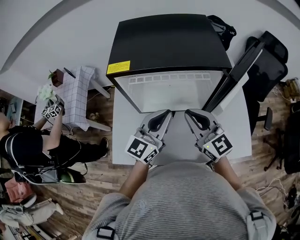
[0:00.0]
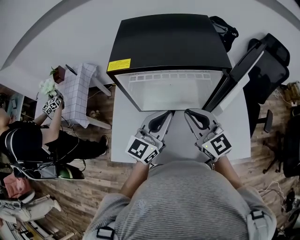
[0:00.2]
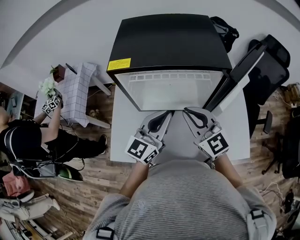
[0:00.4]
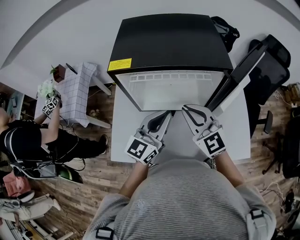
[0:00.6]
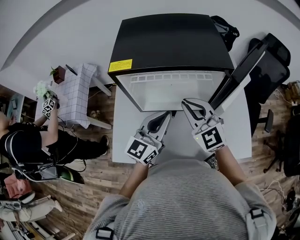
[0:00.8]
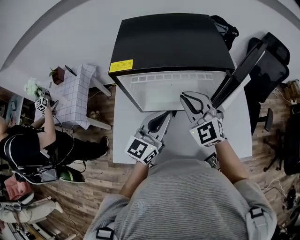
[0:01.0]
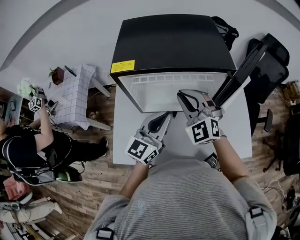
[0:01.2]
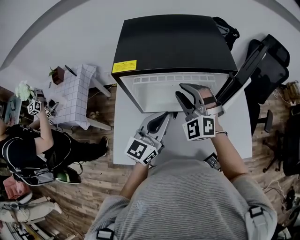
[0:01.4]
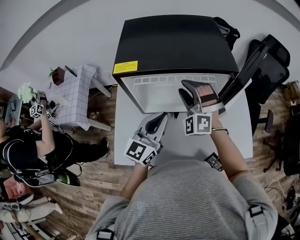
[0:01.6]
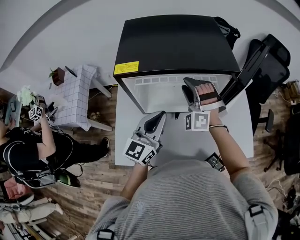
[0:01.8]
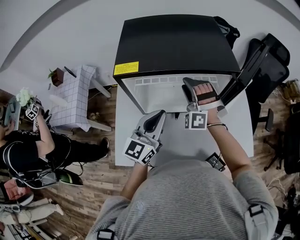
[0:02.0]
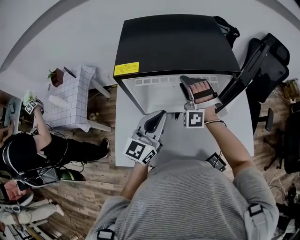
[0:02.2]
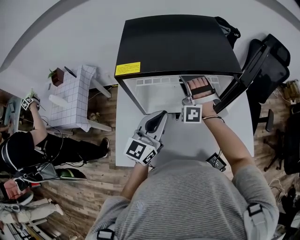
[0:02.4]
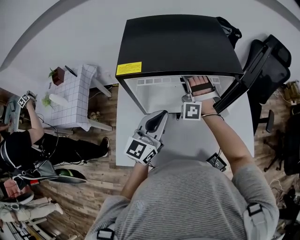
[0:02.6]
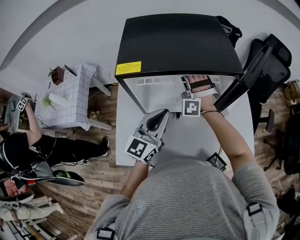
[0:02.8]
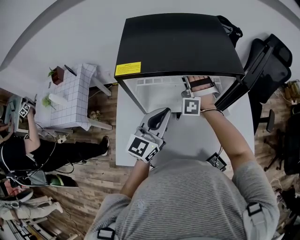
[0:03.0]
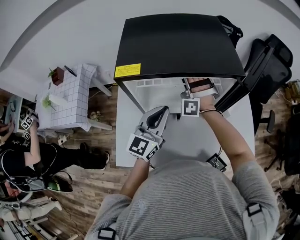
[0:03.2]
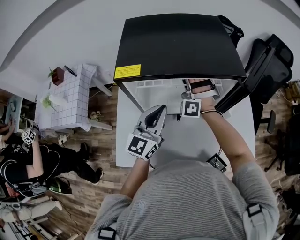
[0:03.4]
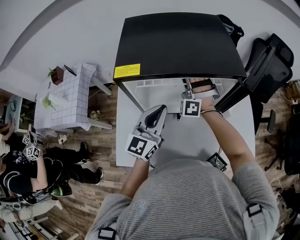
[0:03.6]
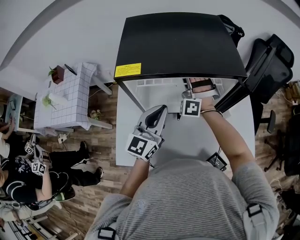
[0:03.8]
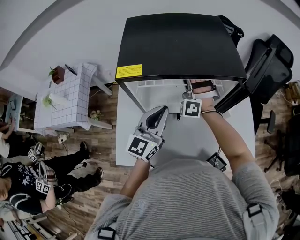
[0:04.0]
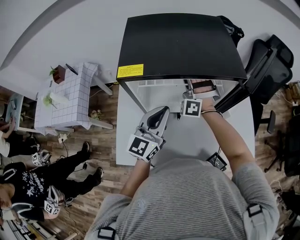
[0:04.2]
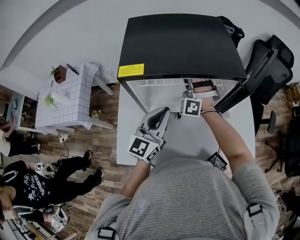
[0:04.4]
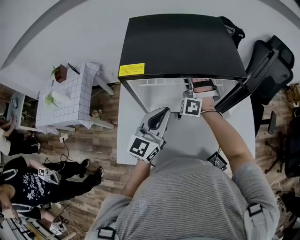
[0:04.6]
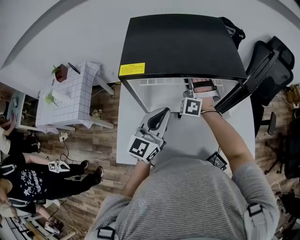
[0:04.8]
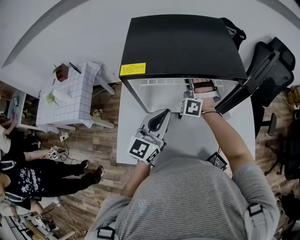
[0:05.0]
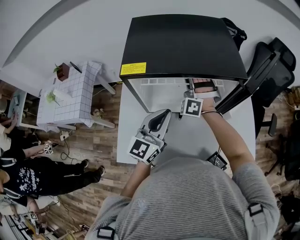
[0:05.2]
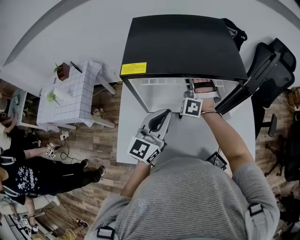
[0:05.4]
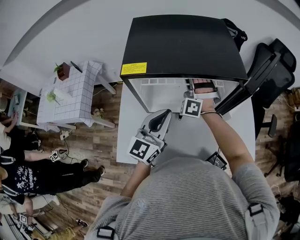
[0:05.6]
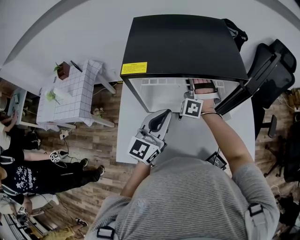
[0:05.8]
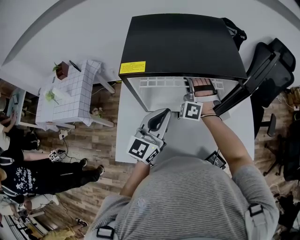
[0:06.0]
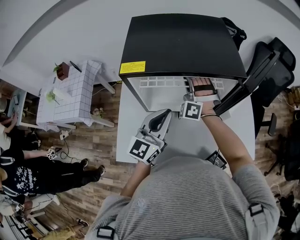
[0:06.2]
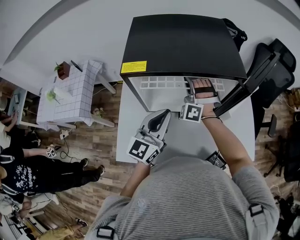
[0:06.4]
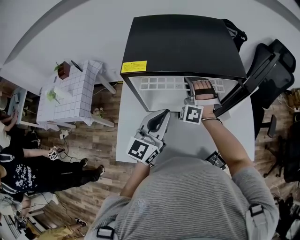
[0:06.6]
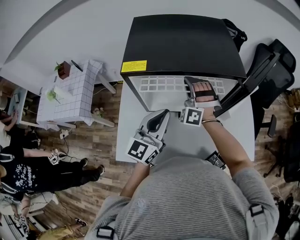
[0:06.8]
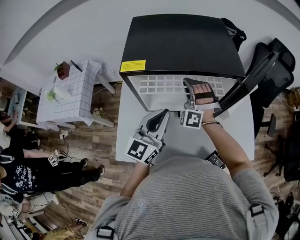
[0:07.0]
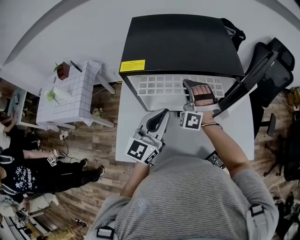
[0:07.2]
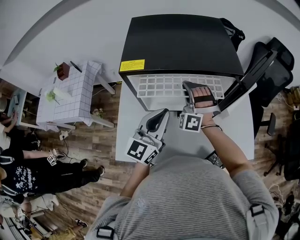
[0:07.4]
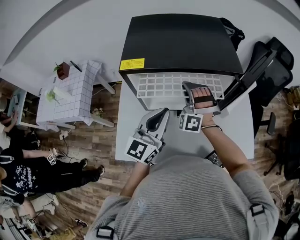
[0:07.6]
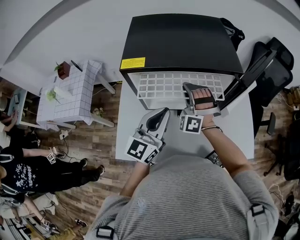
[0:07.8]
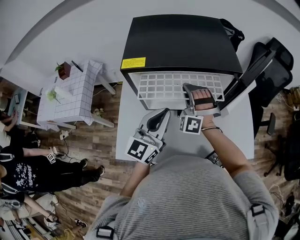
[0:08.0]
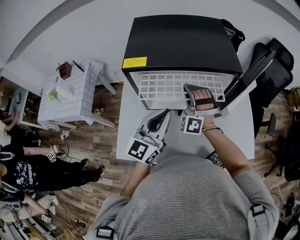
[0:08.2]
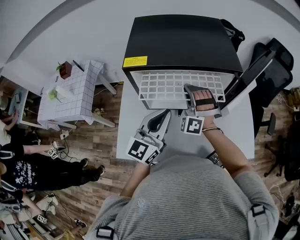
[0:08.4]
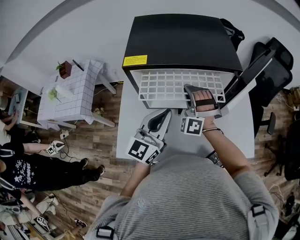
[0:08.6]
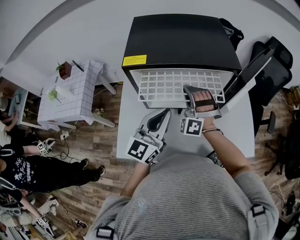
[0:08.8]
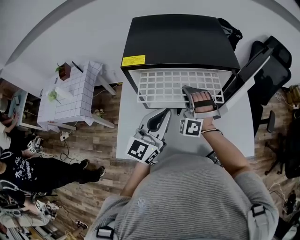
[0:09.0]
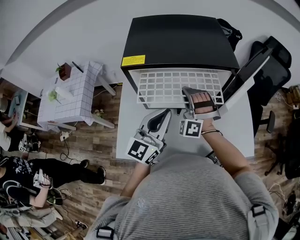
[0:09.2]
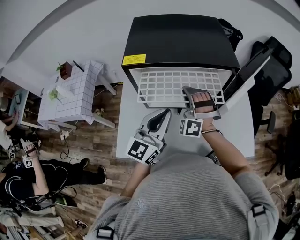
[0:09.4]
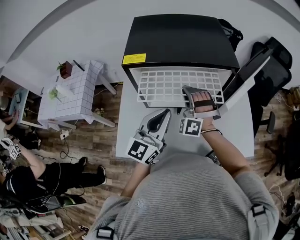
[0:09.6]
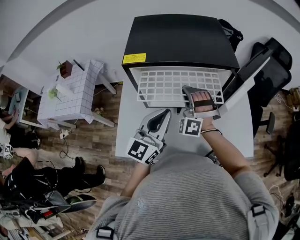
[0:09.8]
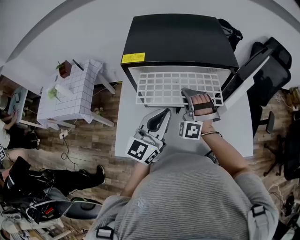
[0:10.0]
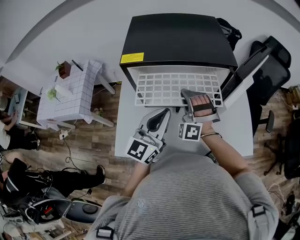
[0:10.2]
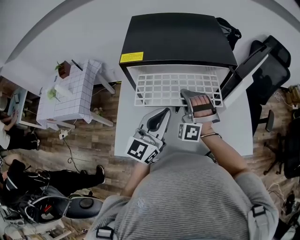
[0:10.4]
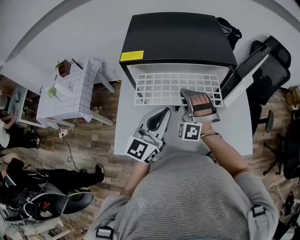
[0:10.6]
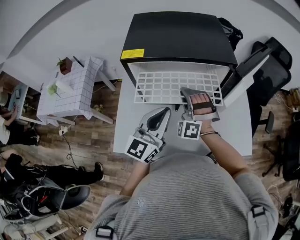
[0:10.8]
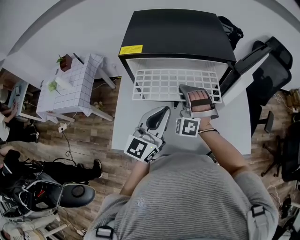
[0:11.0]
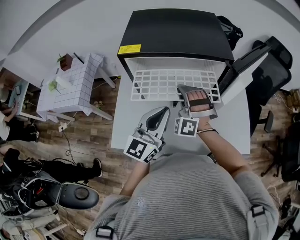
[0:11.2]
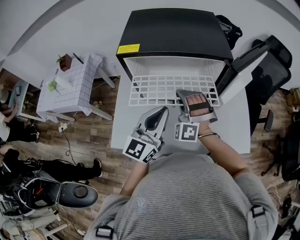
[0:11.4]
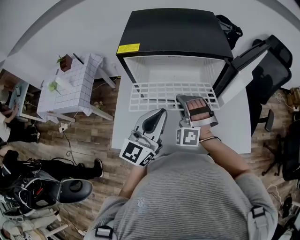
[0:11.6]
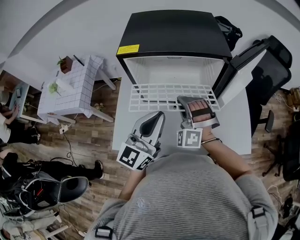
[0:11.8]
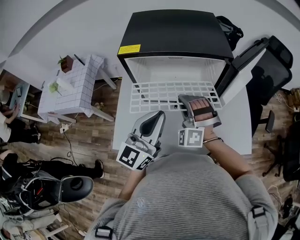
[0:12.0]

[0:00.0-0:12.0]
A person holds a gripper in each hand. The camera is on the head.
0:00.0 to 0:01.6: The right gripper moves forward, roughly 10 cm, rotates around the line of its fingers by about 70 degrees, counterclockwise from behind, and opens up.
0:01.6 to 0:03.0: The right gripper moves forward, about 10 cm, and changes its angle by about 20 degrees.
0:03.0 to 0:04.4: The right gripper closes.
0:04.4 to 0:06.0: The grippers move only a little.
0:06.0 to 0:07.6: The right gripper heads backward, covering roughly 5 cm.
0:07.6 to 0:09.0: The grippers stay close to where they were, moving slightly.
0:09.0 to 0:10.4: The grippers make only small movements.
0:10.4 to 0:12.0: The left gripper shifts by about 5 cm. The right gripper heads backward, covering roughly 5 cm.

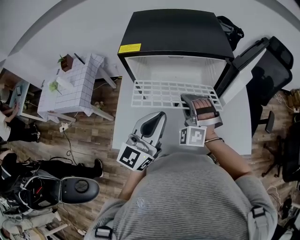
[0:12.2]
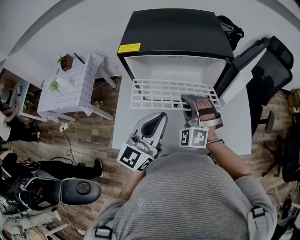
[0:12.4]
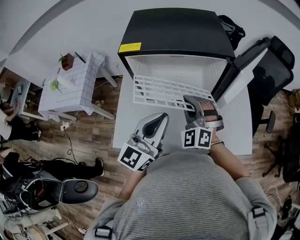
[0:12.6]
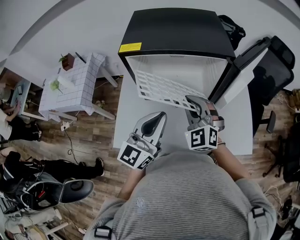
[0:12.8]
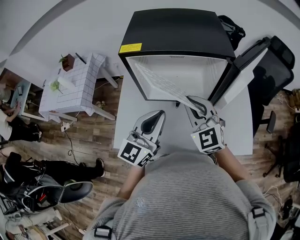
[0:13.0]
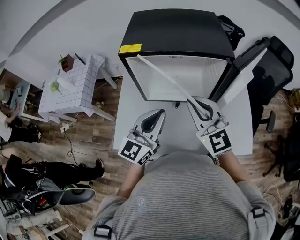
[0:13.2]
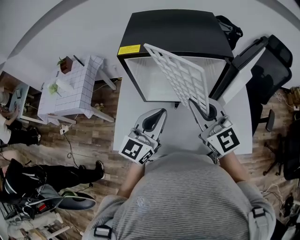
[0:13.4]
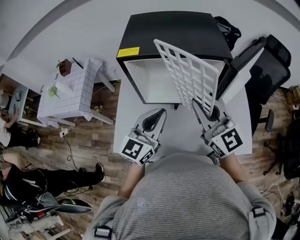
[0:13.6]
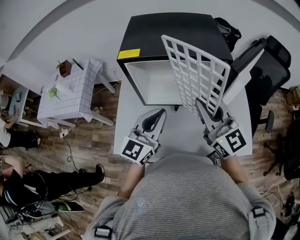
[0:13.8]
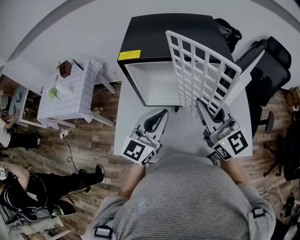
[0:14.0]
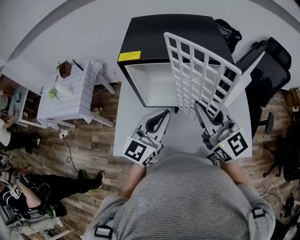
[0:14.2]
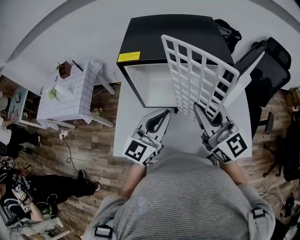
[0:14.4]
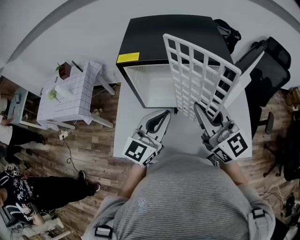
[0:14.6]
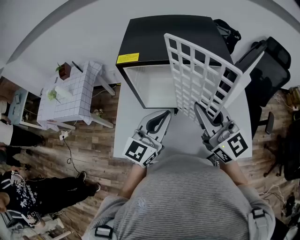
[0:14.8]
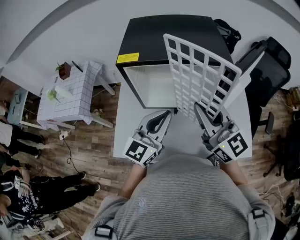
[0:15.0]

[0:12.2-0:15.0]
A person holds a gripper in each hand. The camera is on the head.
0:12.2 to 0:13.6: The right gripper shifts about 10 cm upward, and twists some 60 degrees clockwise, seen from behind.
0:13.6 to 0:15.0: The grippers stay close to where they were, moving slightly.

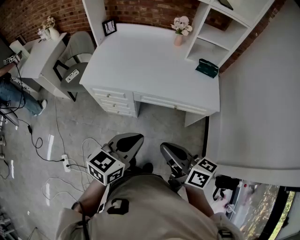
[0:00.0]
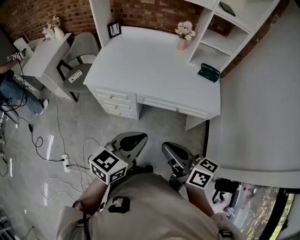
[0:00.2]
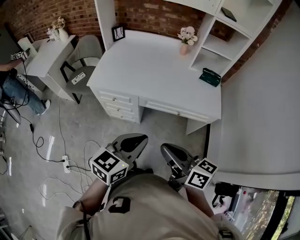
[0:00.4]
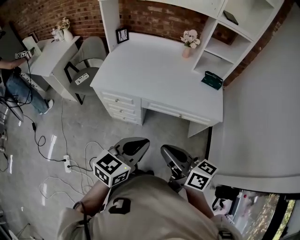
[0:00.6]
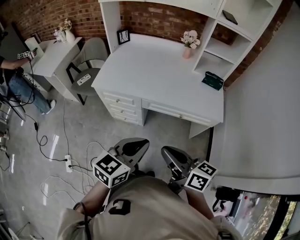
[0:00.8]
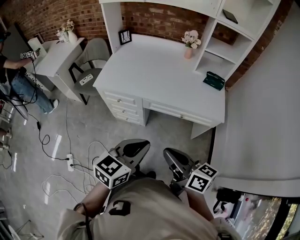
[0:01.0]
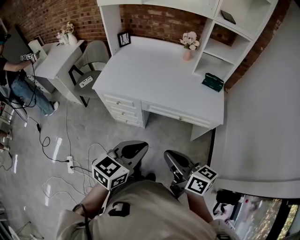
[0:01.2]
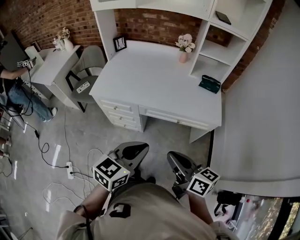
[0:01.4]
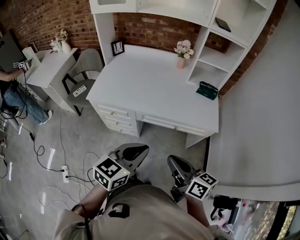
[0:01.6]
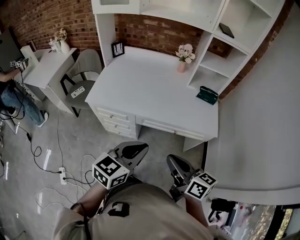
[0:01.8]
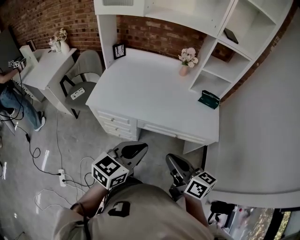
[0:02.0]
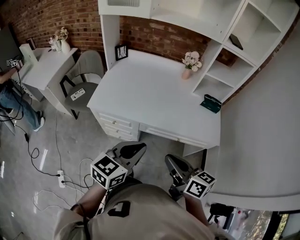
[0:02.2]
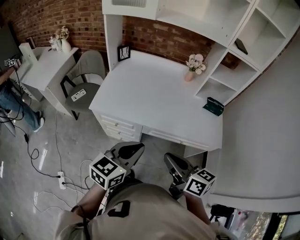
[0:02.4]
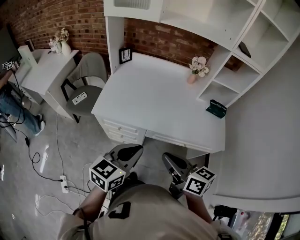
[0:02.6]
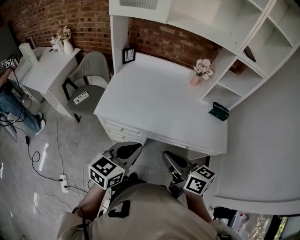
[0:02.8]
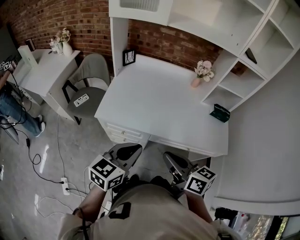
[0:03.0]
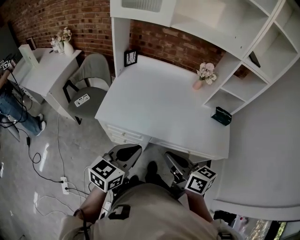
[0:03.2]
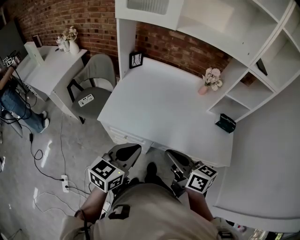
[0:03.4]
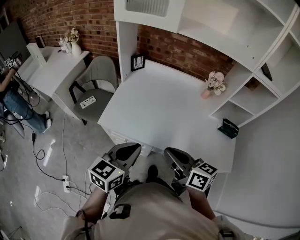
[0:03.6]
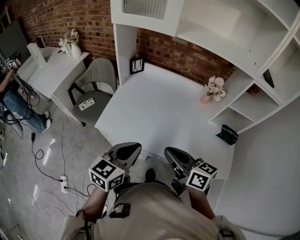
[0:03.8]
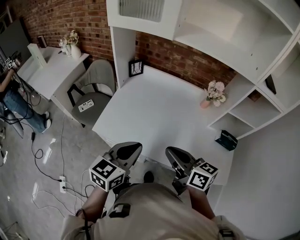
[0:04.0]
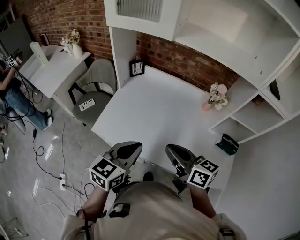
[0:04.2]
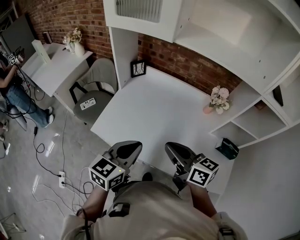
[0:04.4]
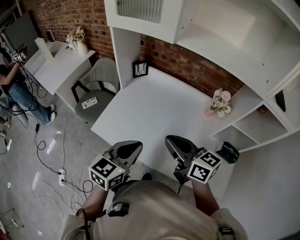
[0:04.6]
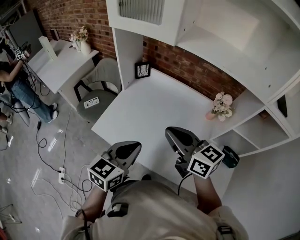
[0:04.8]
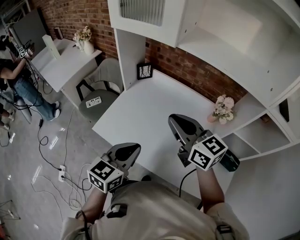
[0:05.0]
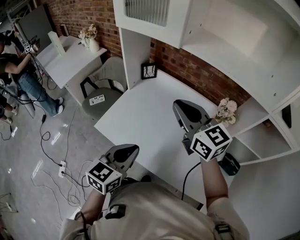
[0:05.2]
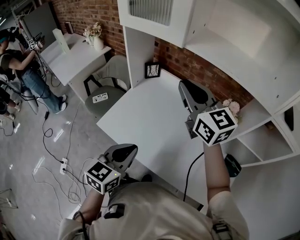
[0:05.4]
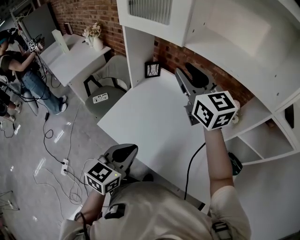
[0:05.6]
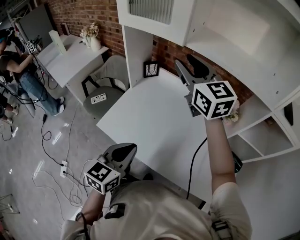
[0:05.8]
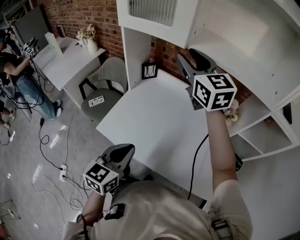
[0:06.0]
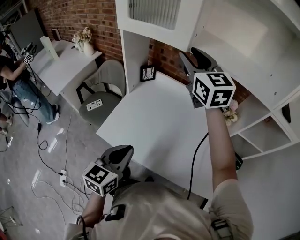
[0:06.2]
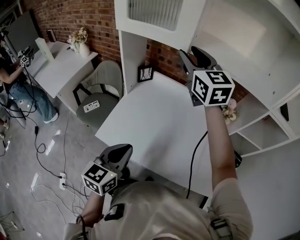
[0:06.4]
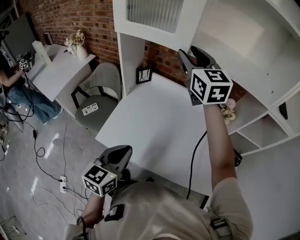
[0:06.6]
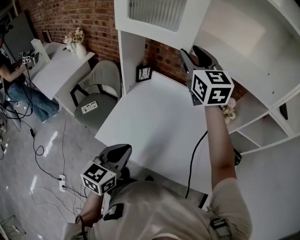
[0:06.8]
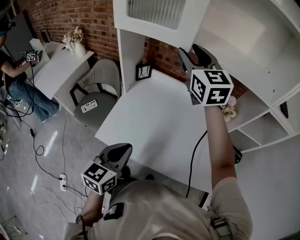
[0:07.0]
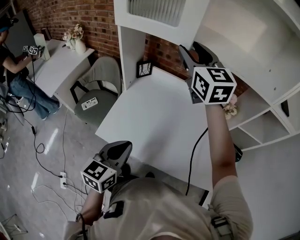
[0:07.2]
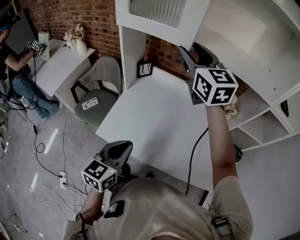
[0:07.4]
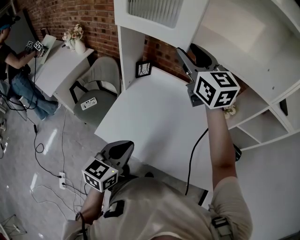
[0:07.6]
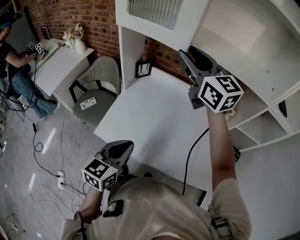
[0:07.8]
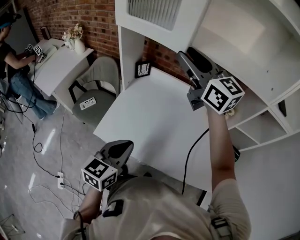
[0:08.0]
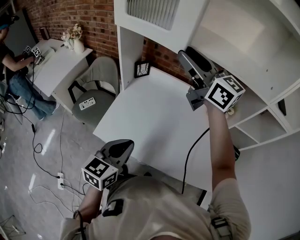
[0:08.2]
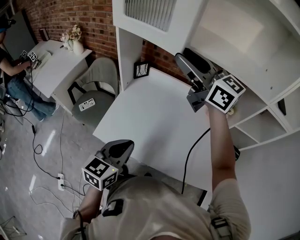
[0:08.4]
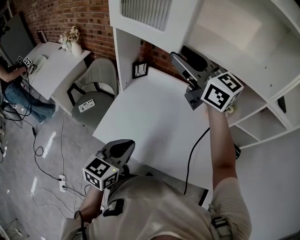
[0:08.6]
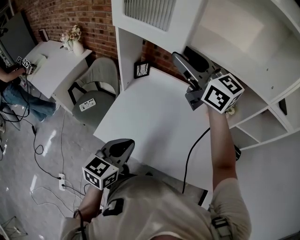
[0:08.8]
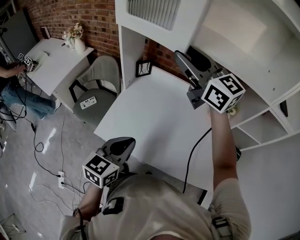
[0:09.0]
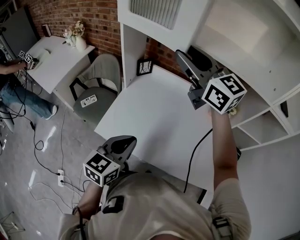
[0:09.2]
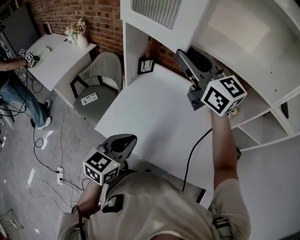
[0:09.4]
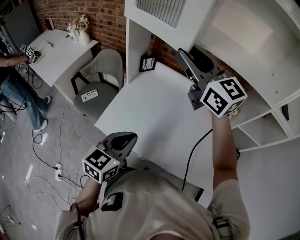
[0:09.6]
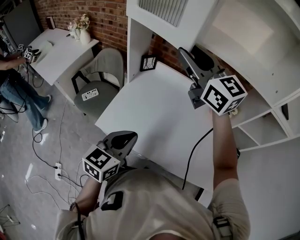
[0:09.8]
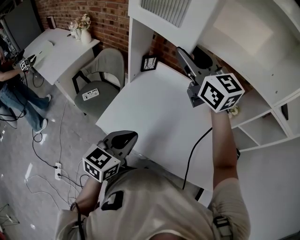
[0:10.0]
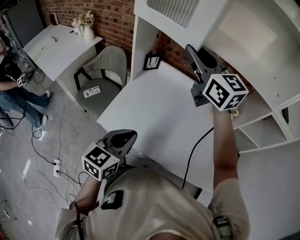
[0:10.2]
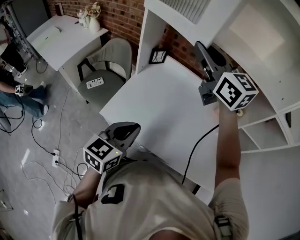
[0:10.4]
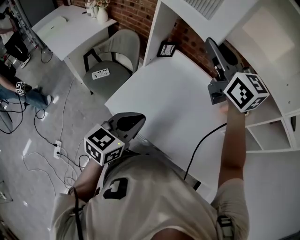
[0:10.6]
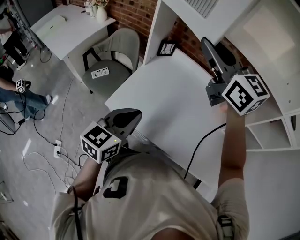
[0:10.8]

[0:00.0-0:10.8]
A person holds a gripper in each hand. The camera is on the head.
0:00.0 to 0:01.6: The grippers stay close to where they were, moving slightly.
0:01.6 to 0:03.0: The two grippers go about 20 cm to the left and forward.
0:03.0 to 0:04.6: Both grippers travel together forward, about 20 cm. The right gripper turns by roughly 20 degrees.
0:04.6 to 0:06.2: The right gripper is displaced forward and upward by about 30 cm, rotates roughly 40 degrees, and opens; the left gripper heads to the left, covering roughly 5 cm.
0:06.2 to 0:07.8: The grippers move only a little.
0:09.2 to 0:10.8: The grippers both shift to the left by approximately 5 cm.
